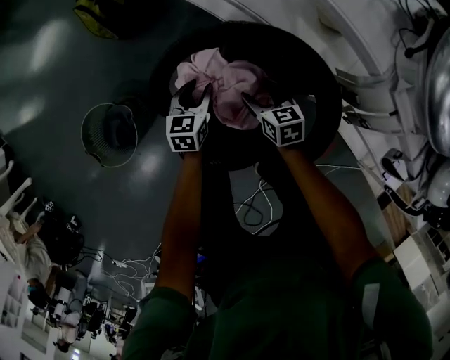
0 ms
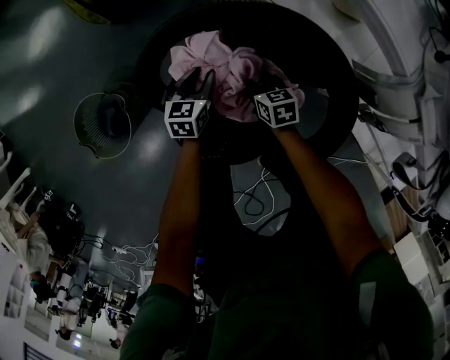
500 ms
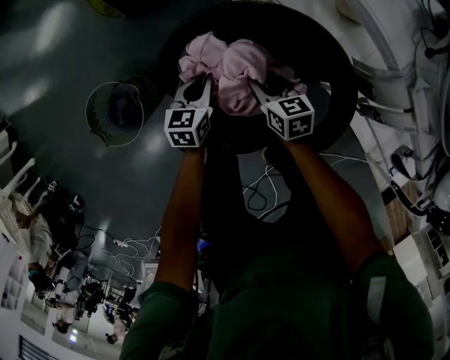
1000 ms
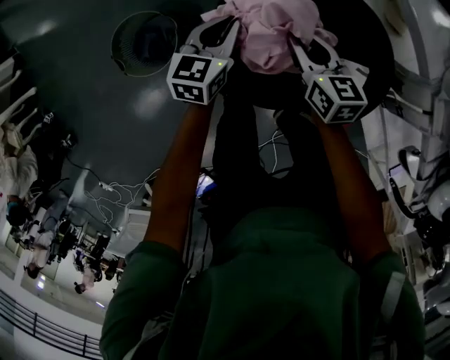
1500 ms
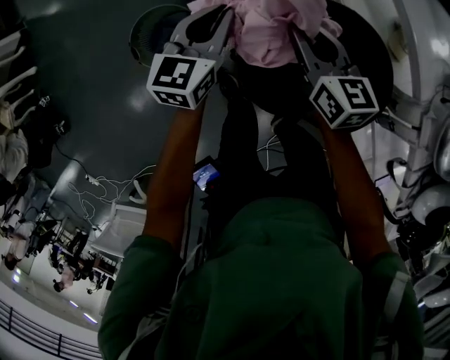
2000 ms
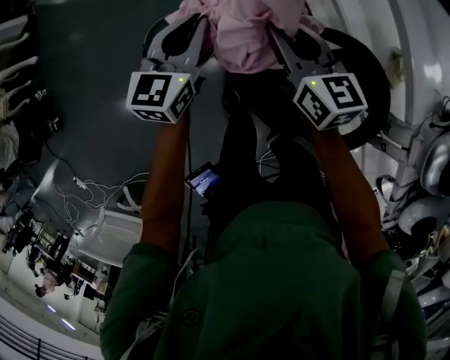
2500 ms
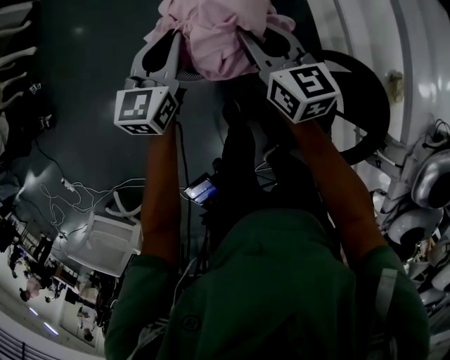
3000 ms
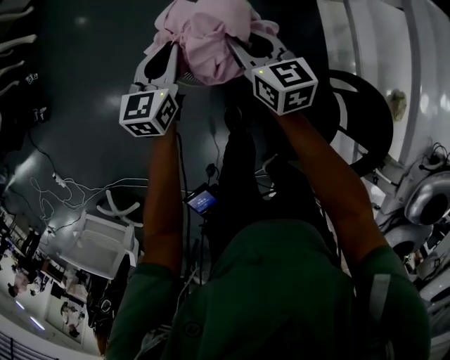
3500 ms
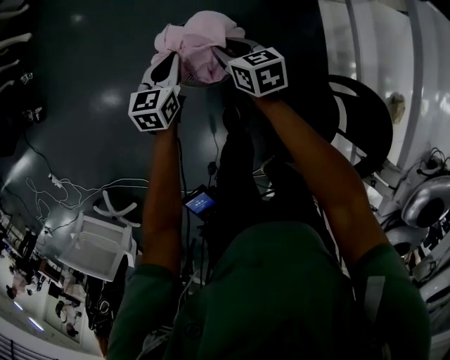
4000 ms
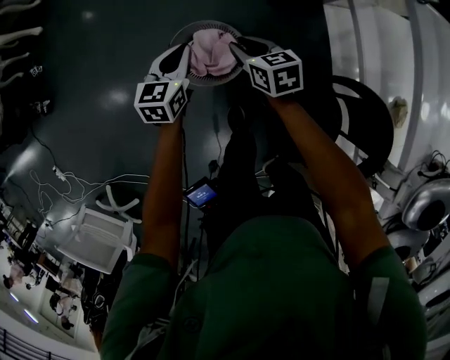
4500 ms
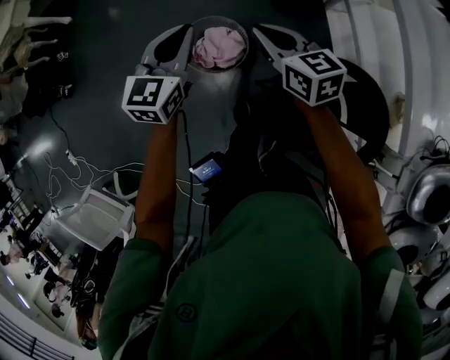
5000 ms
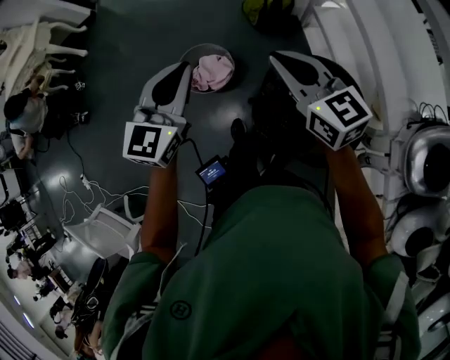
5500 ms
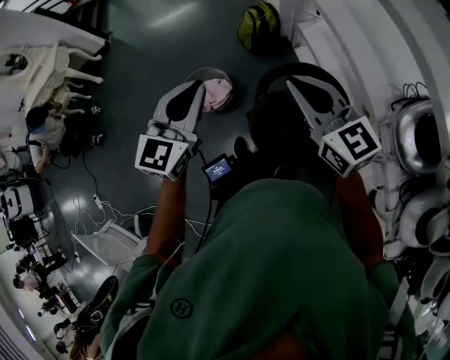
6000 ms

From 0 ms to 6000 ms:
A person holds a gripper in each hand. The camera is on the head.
From 0 ms to 2000 ms: The grippers both shift upward and to the left by roughly 35 cm. The left gripper turns by approximately 20 degrees, and closes its fingers. Meanwhile the right gripper turns by some 30 degrees, and closes.
From 2000 ms to 4000 ms: The left gripper changes place by roughly 40 cm, and swivels roughly 30 degrees. Meanwhile the right gripper changes place by approximately 40 cm, and turns by roughly 40 degrees.
From 4000 ms to 6000 ms: The pair of grippers is taken backward and to the right, some 50 cm. The two grippers go about 50 cm upward. The left gripper swivels some 40 degrees. Meanwhile the right gripper angles its fingers upward, by some 40 degrees.

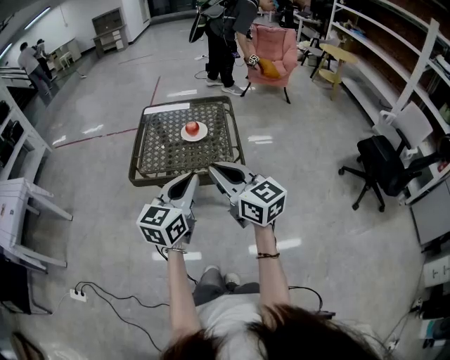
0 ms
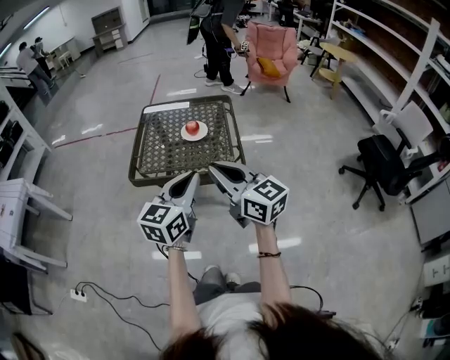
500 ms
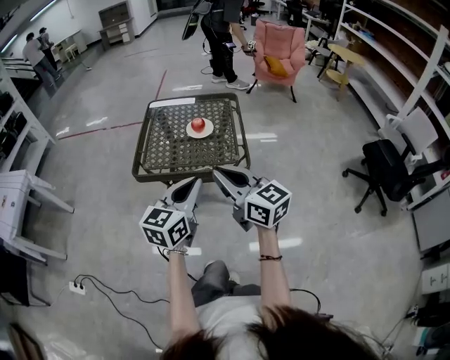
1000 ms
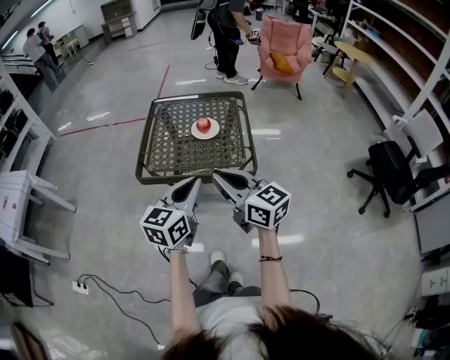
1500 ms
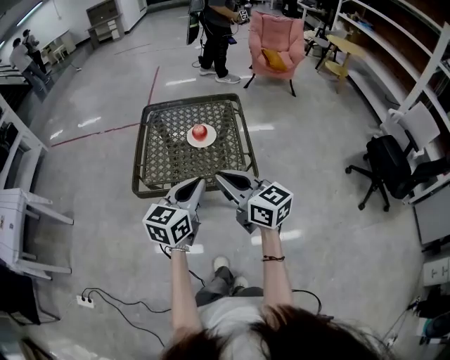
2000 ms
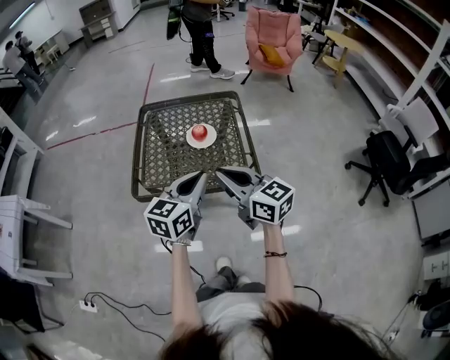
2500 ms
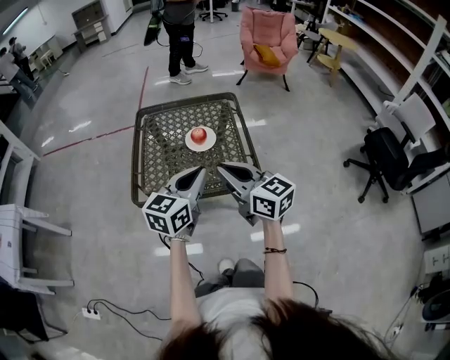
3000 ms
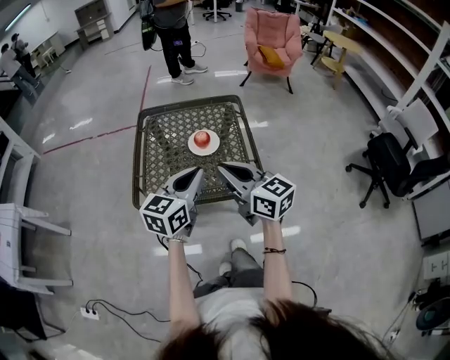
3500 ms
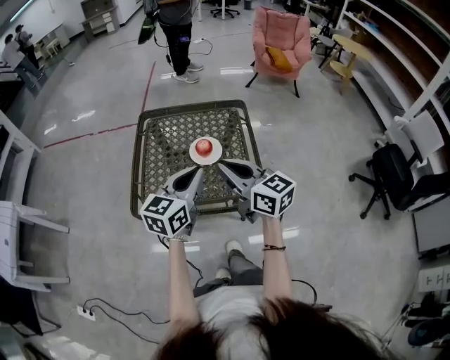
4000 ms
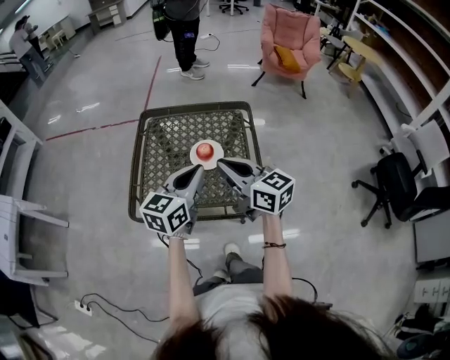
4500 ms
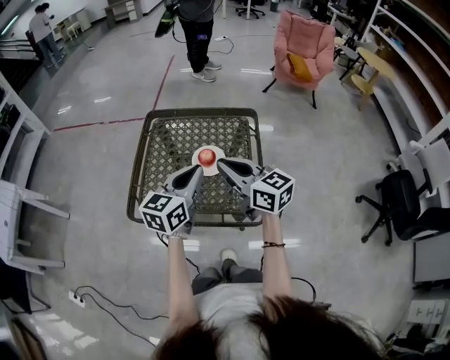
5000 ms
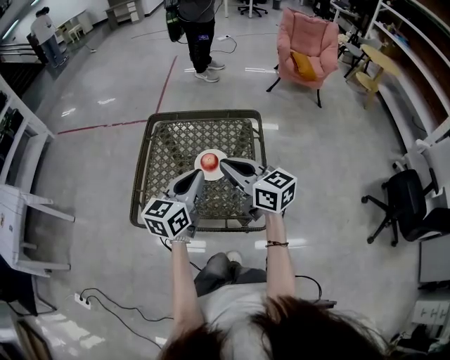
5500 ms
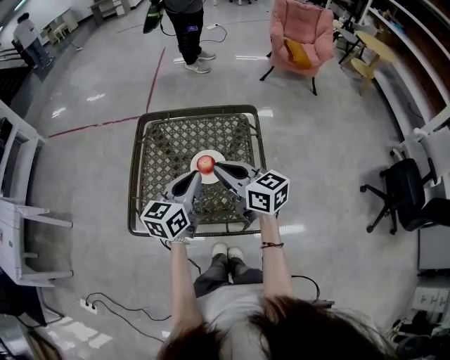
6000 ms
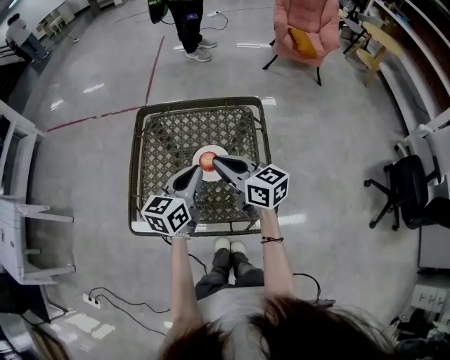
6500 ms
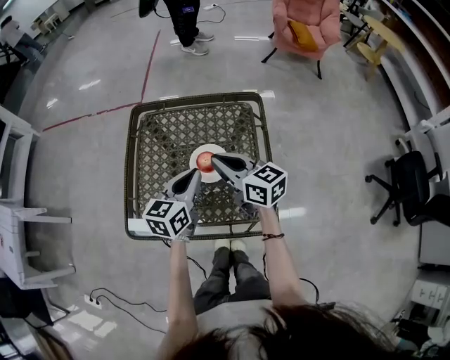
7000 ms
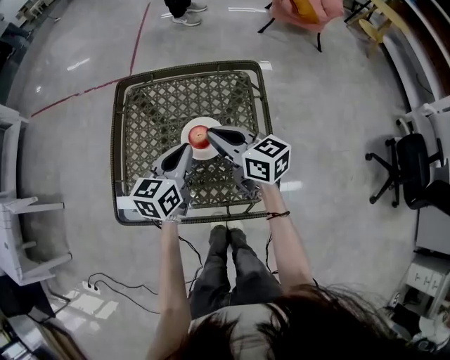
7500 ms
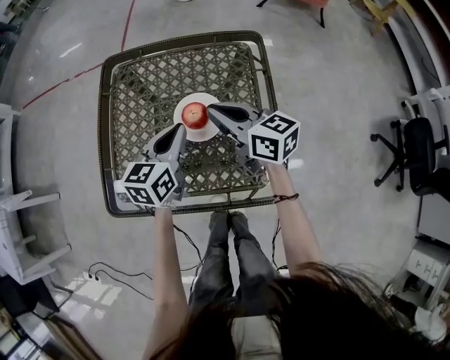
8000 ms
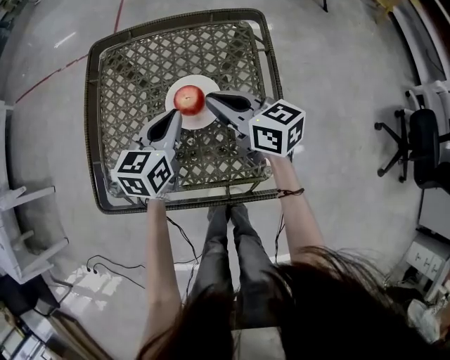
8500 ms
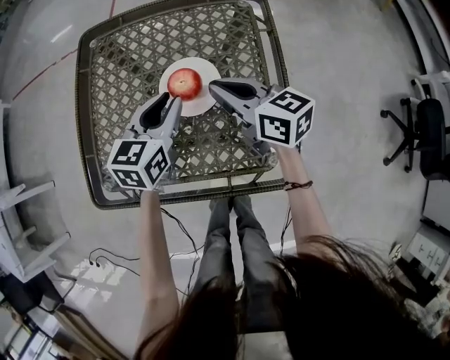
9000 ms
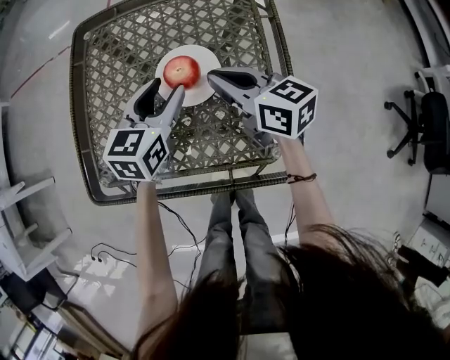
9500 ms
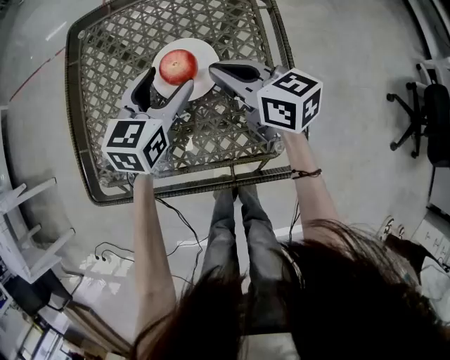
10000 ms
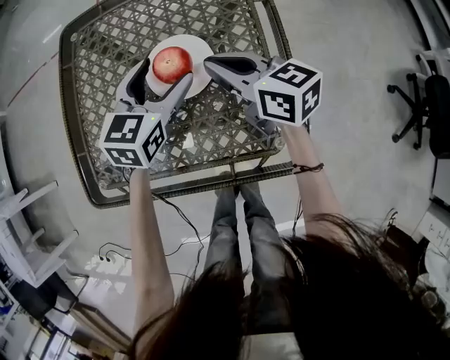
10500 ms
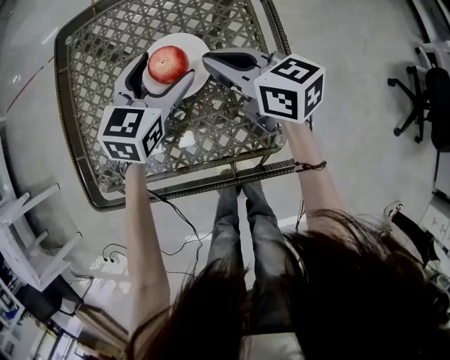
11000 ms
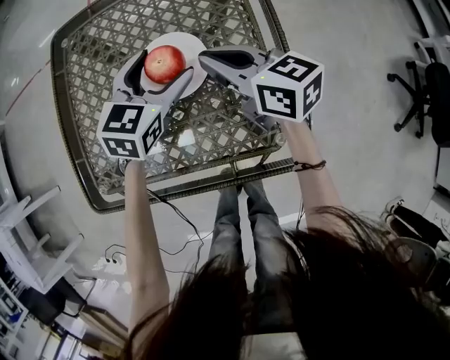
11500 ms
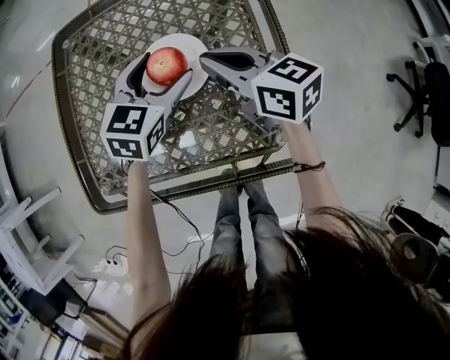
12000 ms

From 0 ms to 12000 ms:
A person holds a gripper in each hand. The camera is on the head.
From 0 ms to 2000 ms: Both grippers move forward, roughly 10 cm.
From 2000 ms to 4000 ms: The grippers both shift forward by approximately 15 cm.
From 4000 ms to 6000 ms: Both grippers travel together forward, roughly 15 cm.
From 6000 ms to 8000 ms: The grippers both shift downward and forward by roughly 15 cm.
From 8000 ms to 10000 ms: The grippers both shift downward by some 10 cm. The left gripper opens up.
From 10000 ms to 12000 ms: The grippers make only small movements.

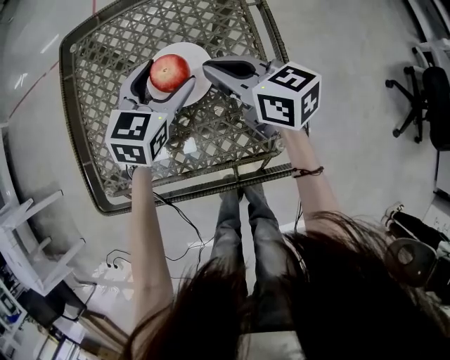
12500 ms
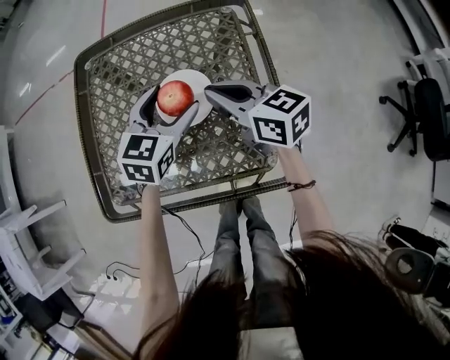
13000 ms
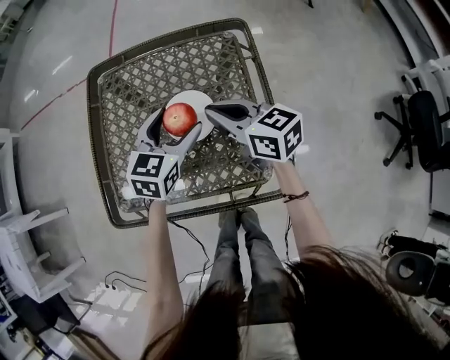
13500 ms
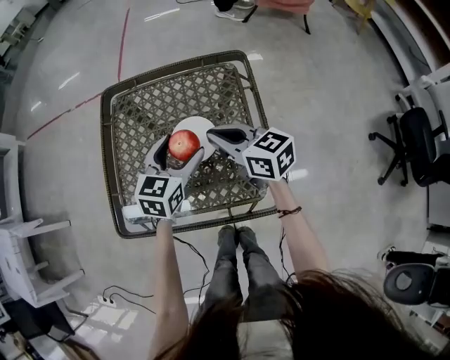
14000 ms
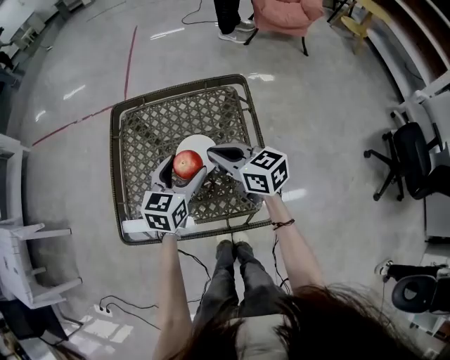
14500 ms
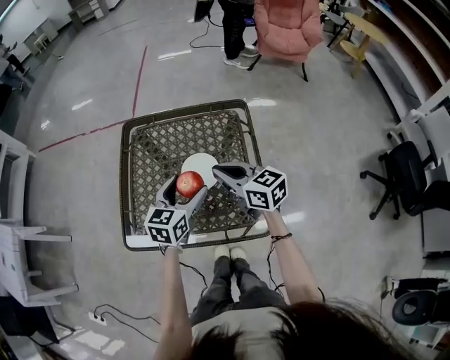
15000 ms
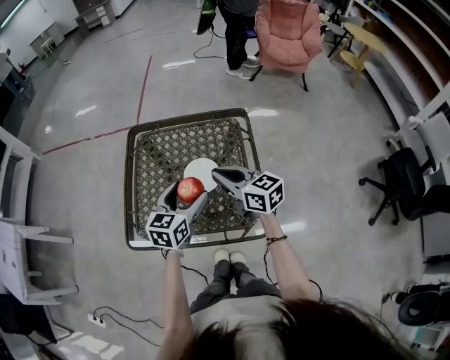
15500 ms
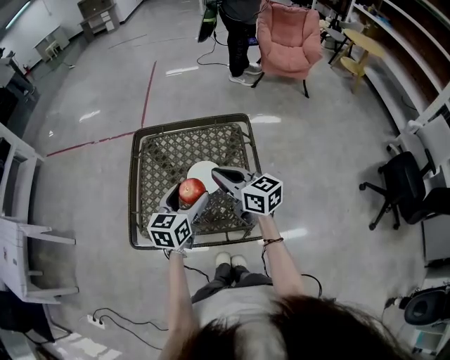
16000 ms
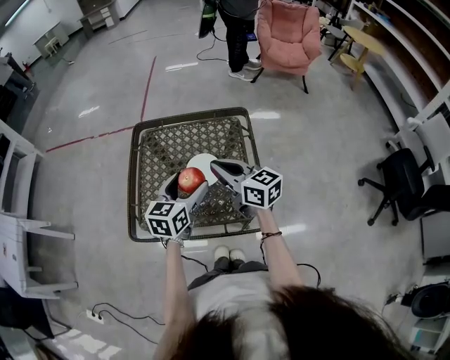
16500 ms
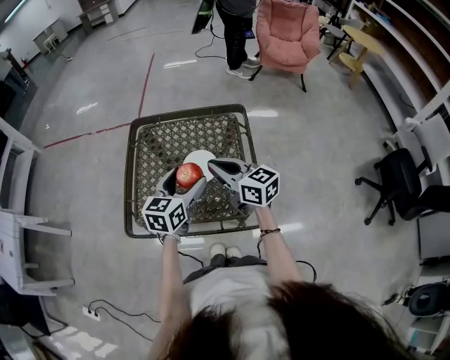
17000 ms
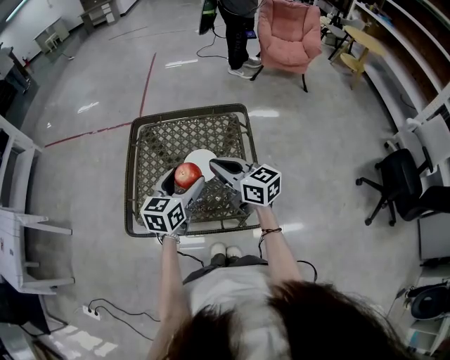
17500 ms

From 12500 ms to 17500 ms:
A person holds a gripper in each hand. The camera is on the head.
From 12500 ms to 15000 ms: The right gripper travels upward by about 15 cm. The left gripper moves upward and backward, roughly 15 cm.
From 15000 ms to 17500 ms: The right gripper shifts by about 5 cm, while the left gripper heads upward, covering some 5 cm.

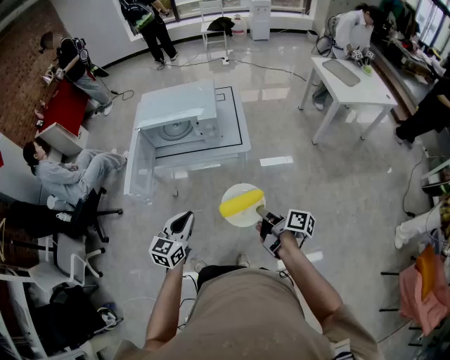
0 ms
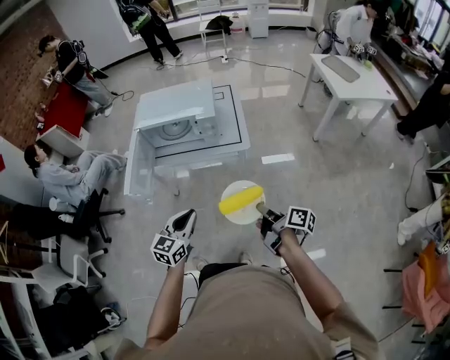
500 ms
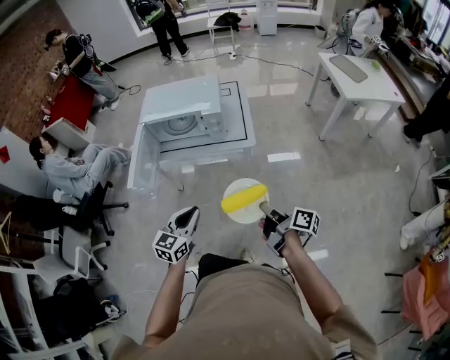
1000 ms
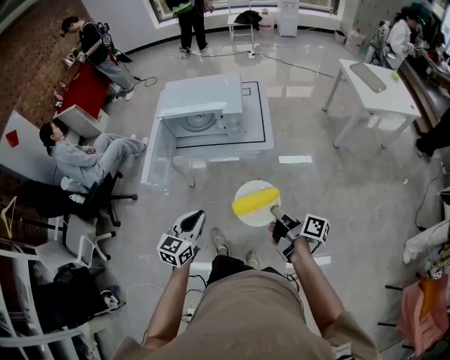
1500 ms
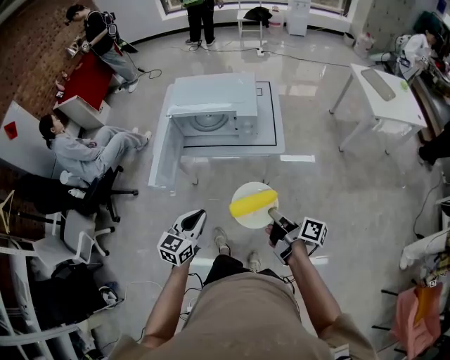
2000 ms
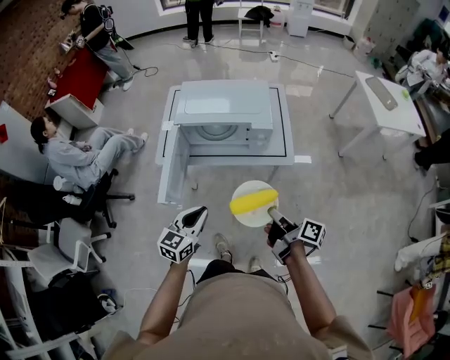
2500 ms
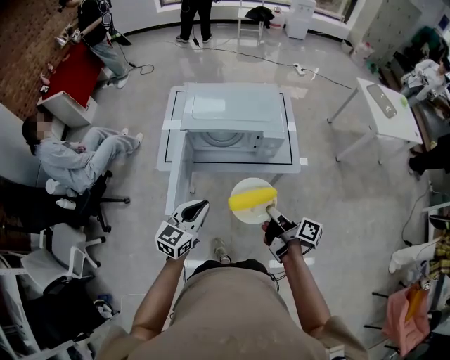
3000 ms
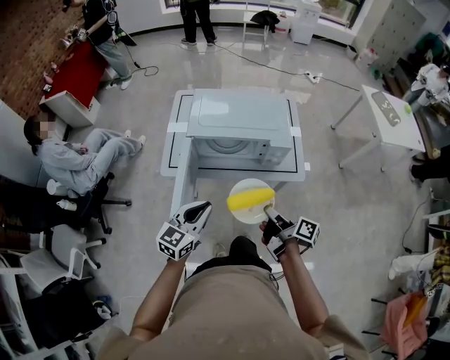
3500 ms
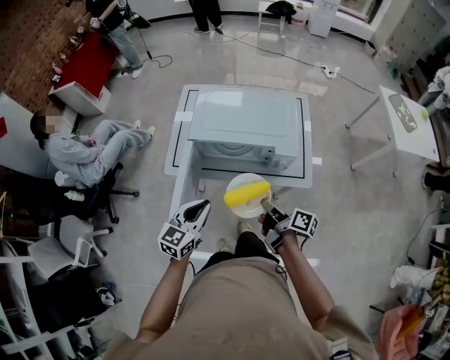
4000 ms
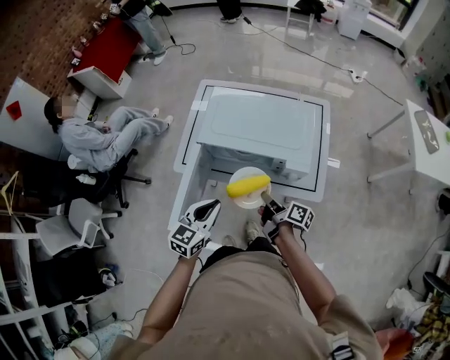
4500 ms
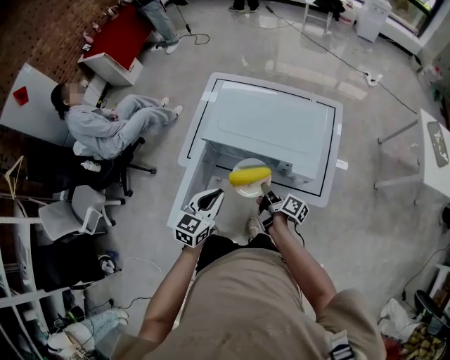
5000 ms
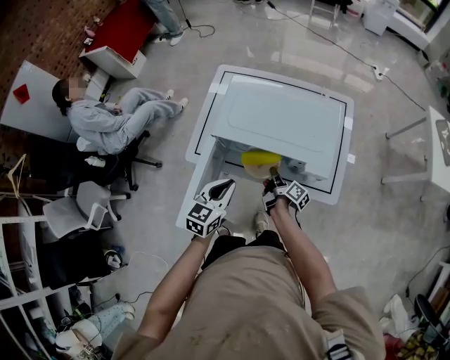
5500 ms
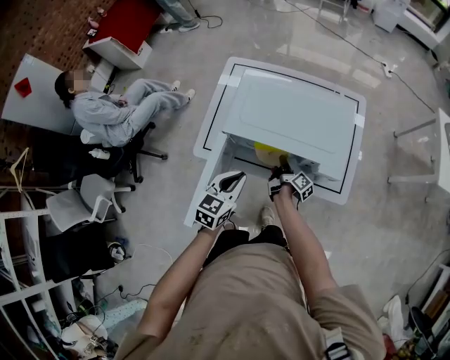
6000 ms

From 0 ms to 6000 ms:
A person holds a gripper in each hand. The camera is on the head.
From 0 ms to 2000 ms: Both grippers travel together to the left, some 5 cm.
From 2000 ms to 4000 ms: The two grippers go approximately 30 cm forward and to the left.
From 4000 ms to 6000 ms: The left gripper travels forward and downward by roughly 15 cm; the right gripper travels forward and downward by some 30 cm.
